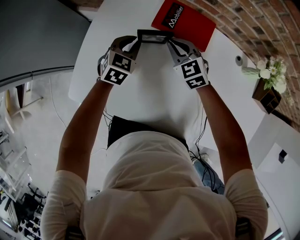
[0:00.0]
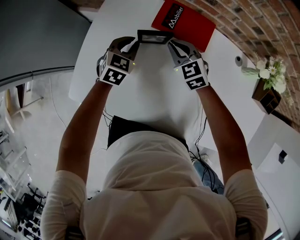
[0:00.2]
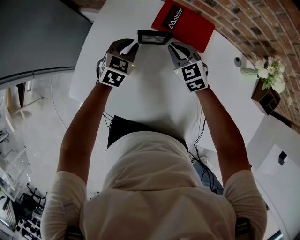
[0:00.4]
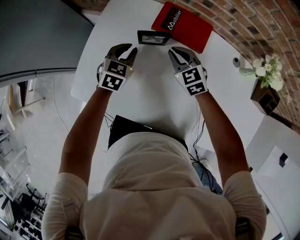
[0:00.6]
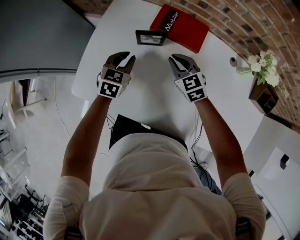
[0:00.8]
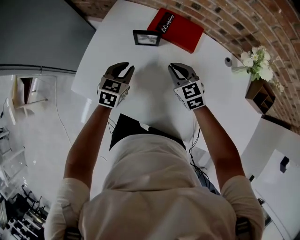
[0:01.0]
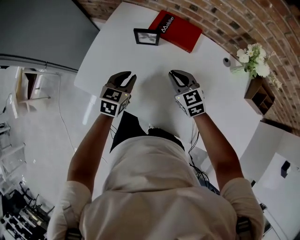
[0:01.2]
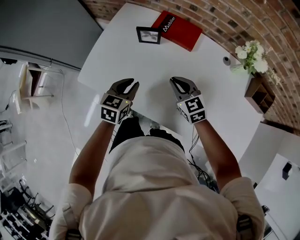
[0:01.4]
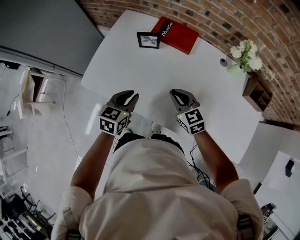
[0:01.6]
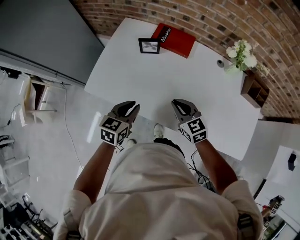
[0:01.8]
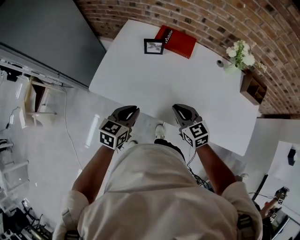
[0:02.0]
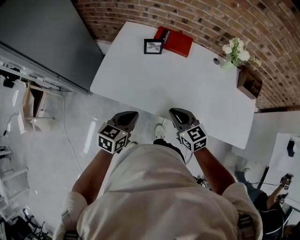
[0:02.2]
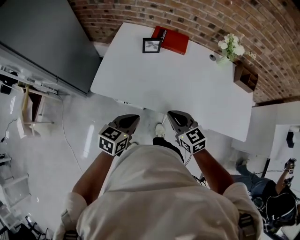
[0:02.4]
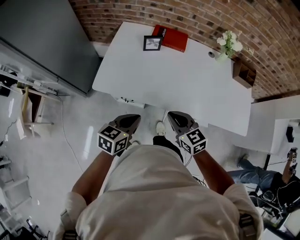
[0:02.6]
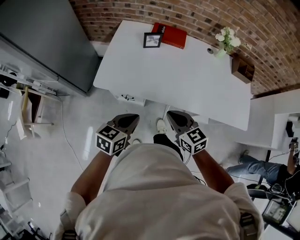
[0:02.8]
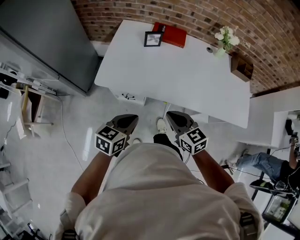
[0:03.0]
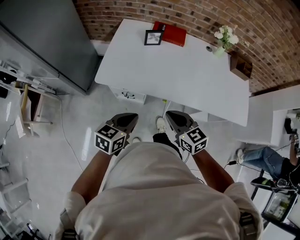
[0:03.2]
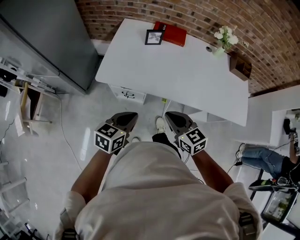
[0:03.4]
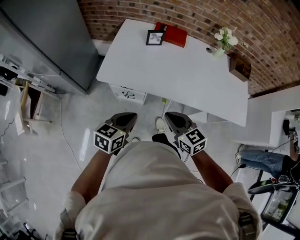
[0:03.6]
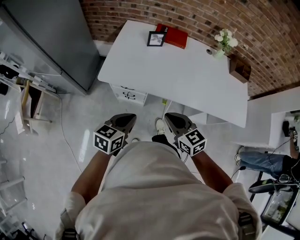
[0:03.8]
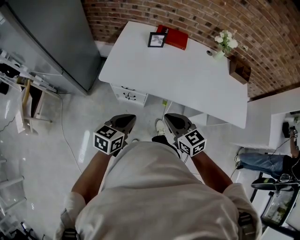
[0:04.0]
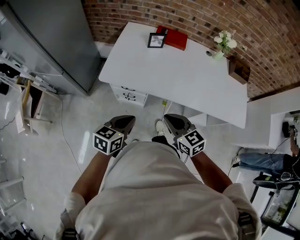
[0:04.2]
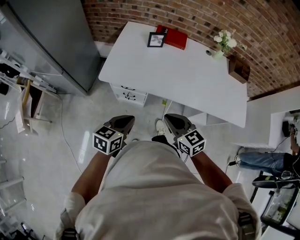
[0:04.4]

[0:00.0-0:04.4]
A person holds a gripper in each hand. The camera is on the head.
0:00.0 to 0:01.4: The grippers both shift backward by approximately 25 cm. The left gripper rotates about 20 degrees.
0:01.4 to 0:03.0: Both grippers travel together backward and to the left, some 30 cm. The left gripper turns by approximately 20 degrees.
0:03.0 to 0:04.4: The left gripper ends up roughly 5 cm from where it was, while the right gripper goes about 5 cm backward.

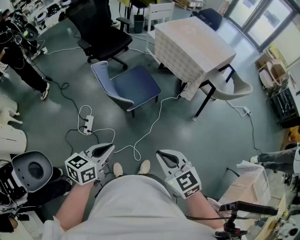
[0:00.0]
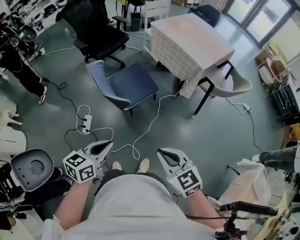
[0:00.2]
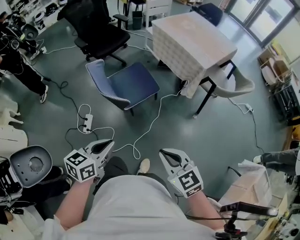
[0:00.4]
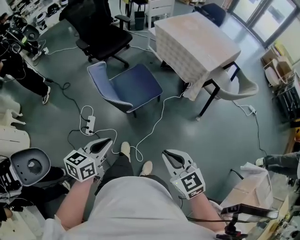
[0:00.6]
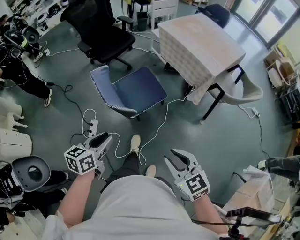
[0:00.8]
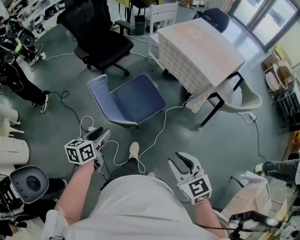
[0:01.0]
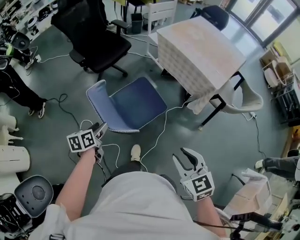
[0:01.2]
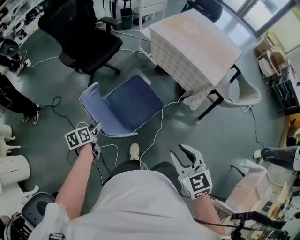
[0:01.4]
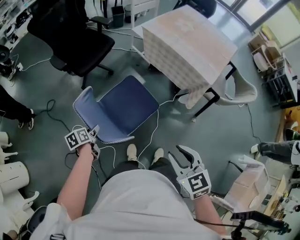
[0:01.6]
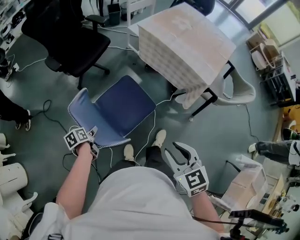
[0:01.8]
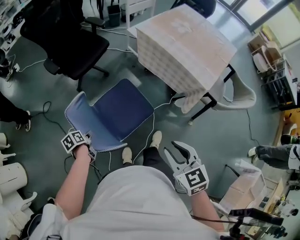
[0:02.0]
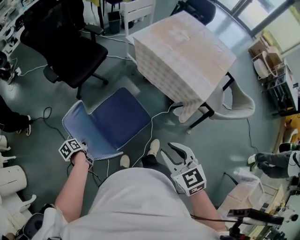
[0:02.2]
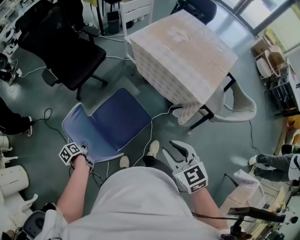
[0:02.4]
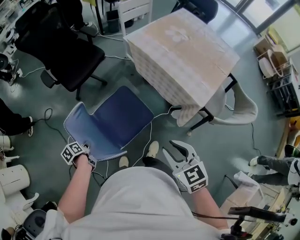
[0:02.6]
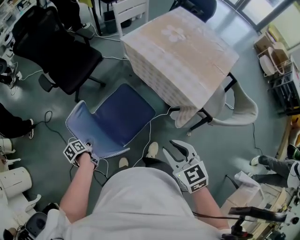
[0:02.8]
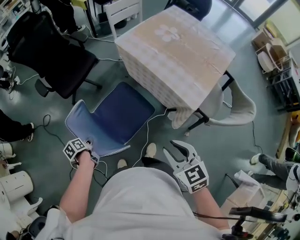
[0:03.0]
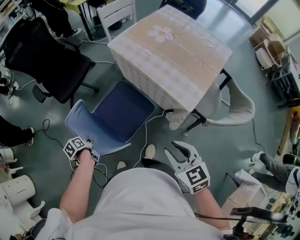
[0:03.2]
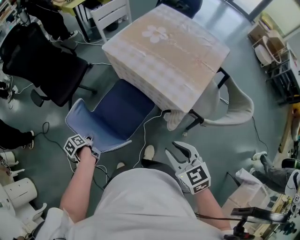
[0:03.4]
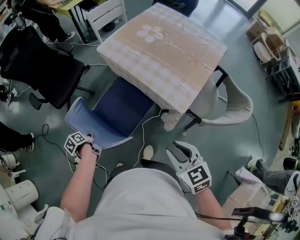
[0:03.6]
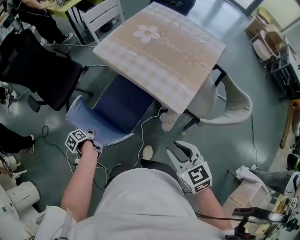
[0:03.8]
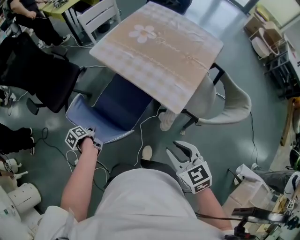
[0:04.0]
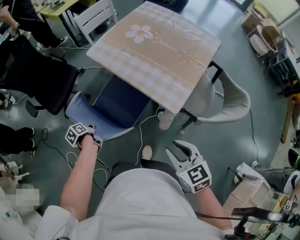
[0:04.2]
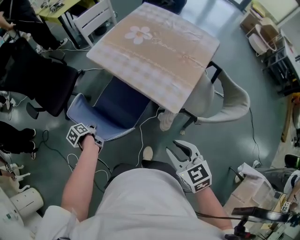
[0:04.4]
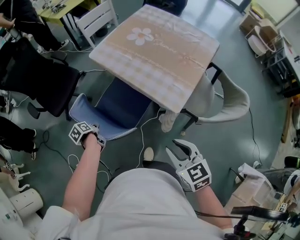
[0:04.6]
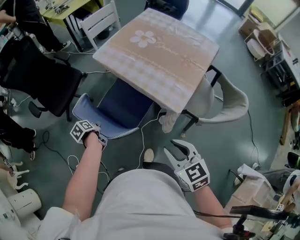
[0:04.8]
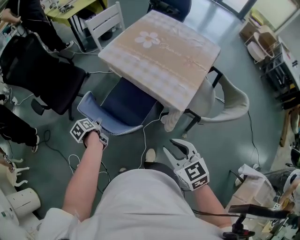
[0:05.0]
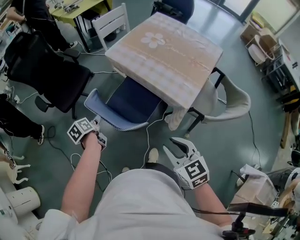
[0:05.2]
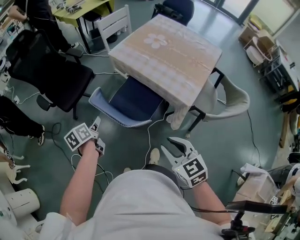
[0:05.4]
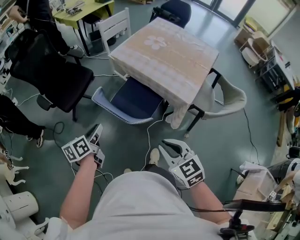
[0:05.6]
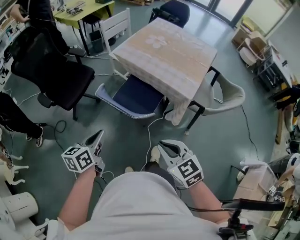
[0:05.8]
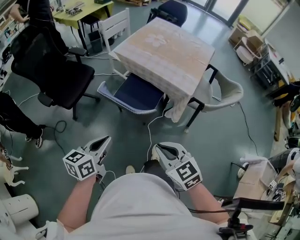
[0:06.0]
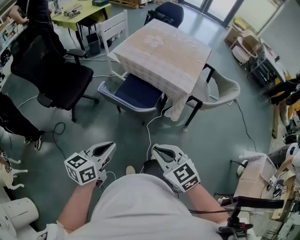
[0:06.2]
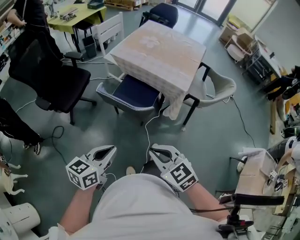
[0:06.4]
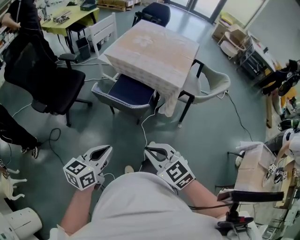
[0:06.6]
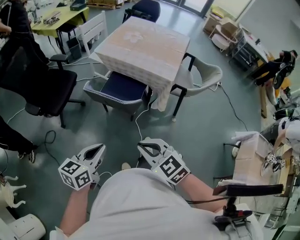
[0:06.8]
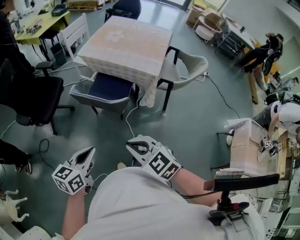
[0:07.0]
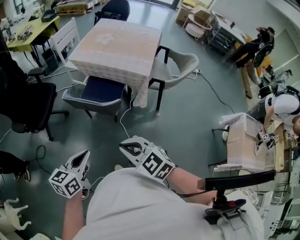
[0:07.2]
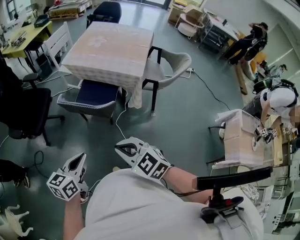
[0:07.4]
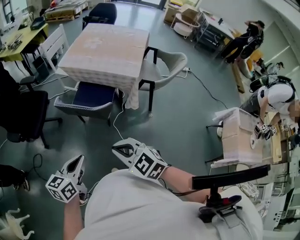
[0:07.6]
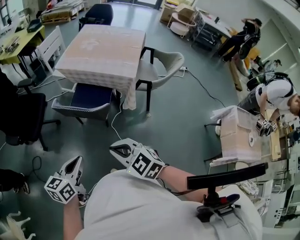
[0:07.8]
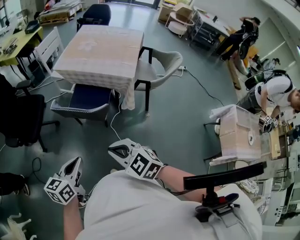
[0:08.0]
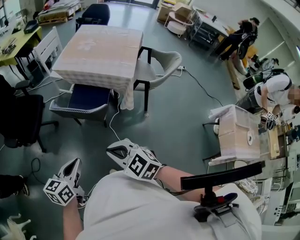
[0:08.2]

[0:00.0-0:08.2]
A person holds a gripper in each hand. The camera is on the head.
0:00.0 to 0:01.6: The right gripper moves forward, some 30 cm, changes its angle by about 20 degrees, and opens up. The left gripper goes roughly 50 cm forward, downward and to the left, swivels roughly 40 degrees, and opens.
0:01.6 to 0:03.2: Both grippers move to the right and forward, some 25 cm. The left gripper closes up.
0:03.2 to 0:05.0: The right gripper reaches approximately 10 cm to the right, then returns, while the left gripper moves to the right and forward, about 15 cm, and opens its fingers.
0:05.0 to 0:06.6: The left gripper travels backward and upward by roughly 35 cm, tips its fingers upward by about 30 degrees, and closes its fingers. Meanwhile the right gripper shifts about 30 cm to the left and backward, and closes up.
0:06.6 to 0:08.2: The grippers move only a little.

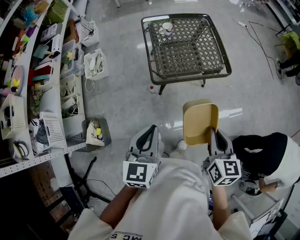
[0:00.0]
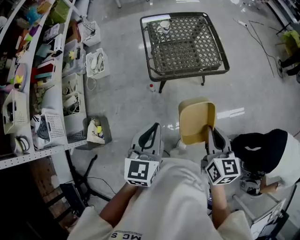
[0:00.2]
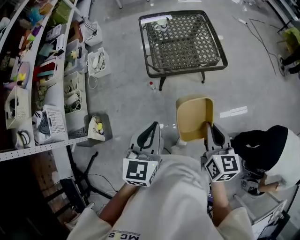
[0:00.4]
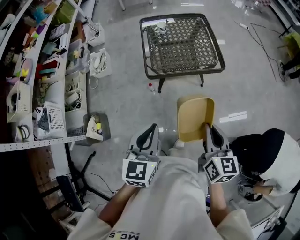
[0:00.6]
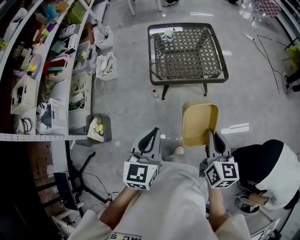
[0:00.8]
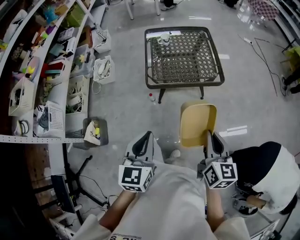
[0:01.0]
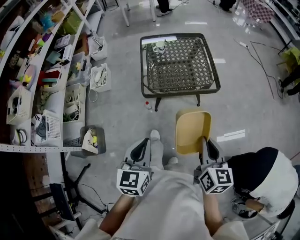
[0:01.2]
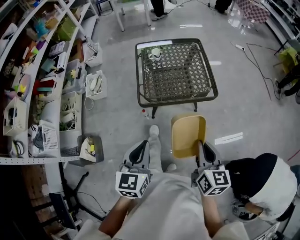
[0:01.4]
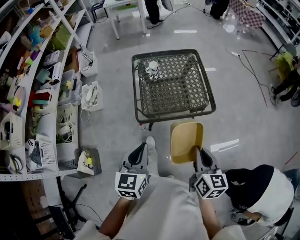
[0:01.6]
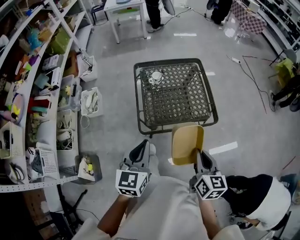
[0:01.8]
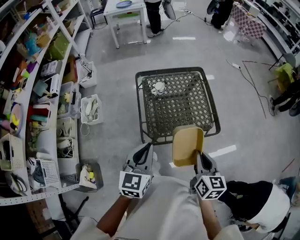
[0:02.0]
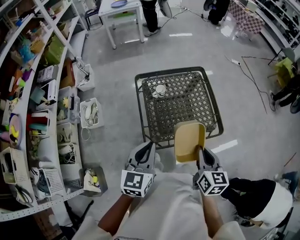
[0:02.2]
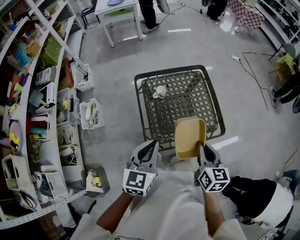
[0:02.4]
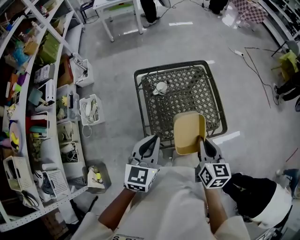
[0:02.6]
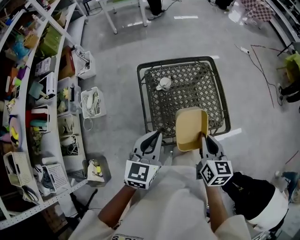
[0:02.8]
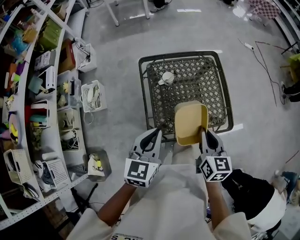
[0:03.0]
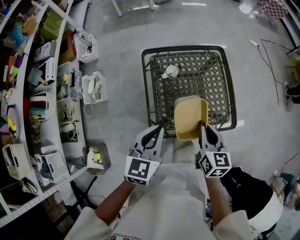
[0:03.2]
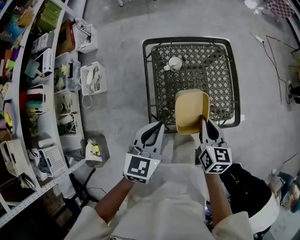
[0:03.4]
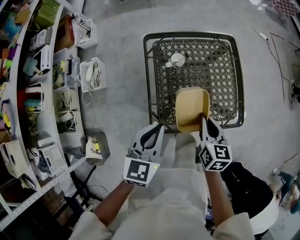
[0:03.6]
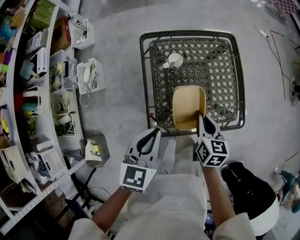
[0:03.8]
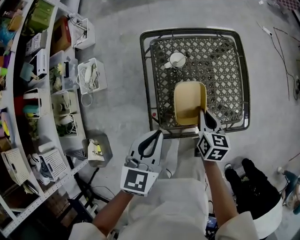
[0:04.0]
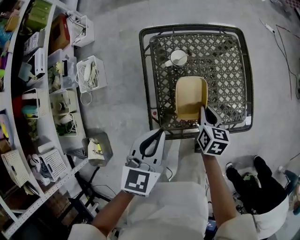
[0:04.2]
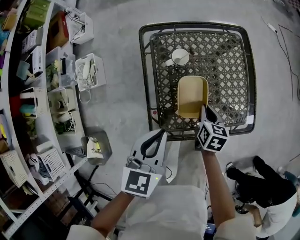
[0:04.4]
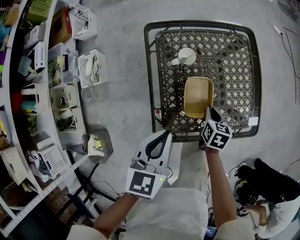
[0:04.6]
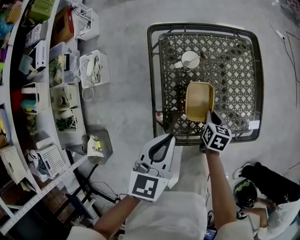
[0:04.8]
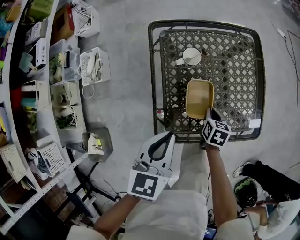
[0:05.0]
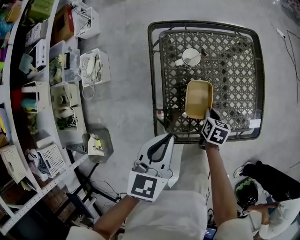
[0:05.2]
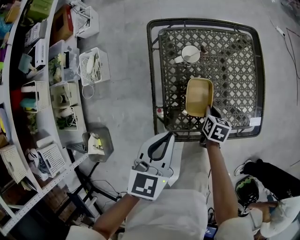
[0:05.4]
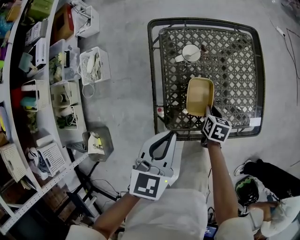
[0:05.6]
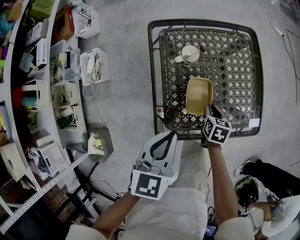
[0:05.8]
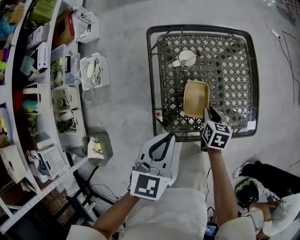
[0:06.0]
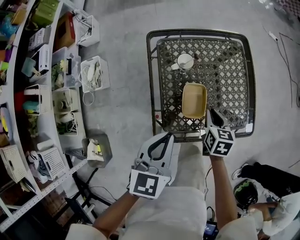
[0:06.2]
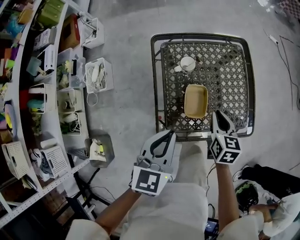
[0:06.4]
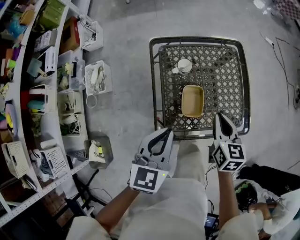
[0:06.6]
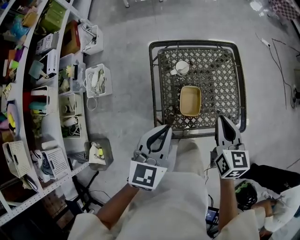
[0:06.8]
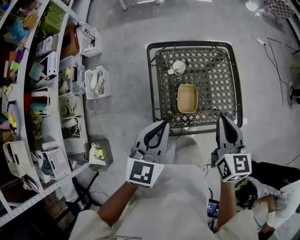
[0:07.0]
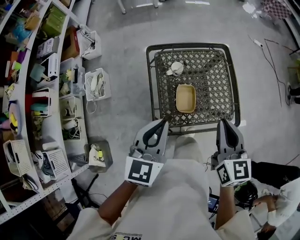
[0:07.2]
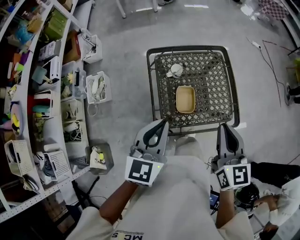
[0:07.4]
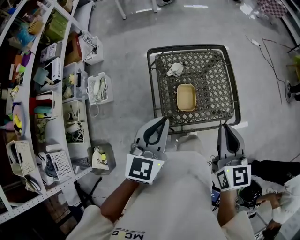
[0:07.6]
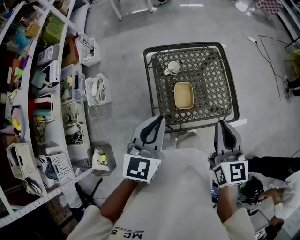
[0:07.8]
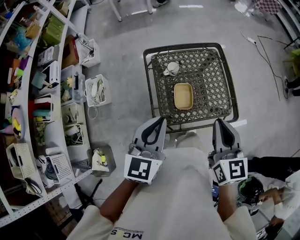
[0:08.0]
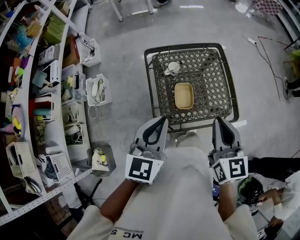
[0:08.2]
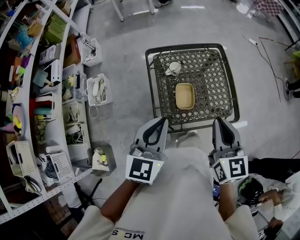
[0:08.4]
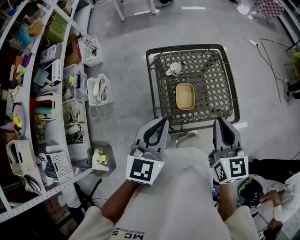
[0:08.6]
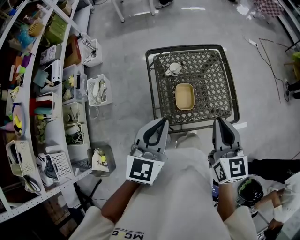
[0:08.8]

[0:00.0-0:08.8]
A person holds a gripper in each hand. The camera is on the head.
0:00.0 to 0:01.4: The two grippers go some 10 cm to the right.
0:01.4 to 0:03.0: Both grippers travel together forward, roughly 35 cm.
0:03.0 to 0:04.4: The left gripper shifts roughly 10 cm downward, while the right gripper moves downward, about 25 cm, and swivels about 20 degrees.
0:04.4 to 0:05.8: The right gripper goes roughly 5 cm downward.
0:05.8 to 0:07.4: The right gripper heads upward, covering approximately 40 cm, and angles its fingers upward, by roughly 40 degrees. The left gripper goes some 15 cm upward.
0:07.4 to 0:08.8: The grippers stay close to where they were, moving slightly.

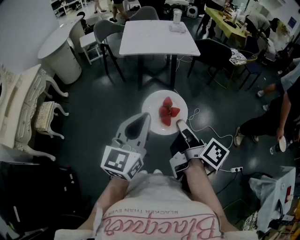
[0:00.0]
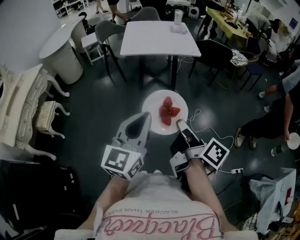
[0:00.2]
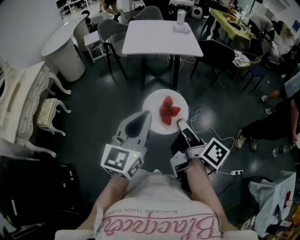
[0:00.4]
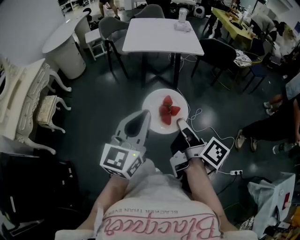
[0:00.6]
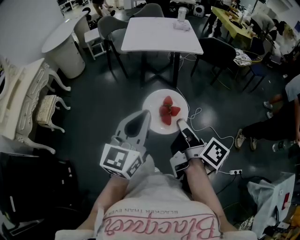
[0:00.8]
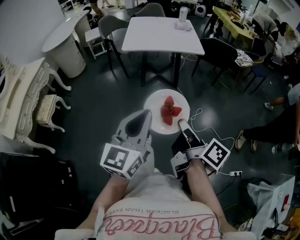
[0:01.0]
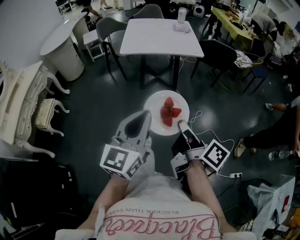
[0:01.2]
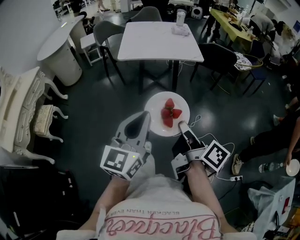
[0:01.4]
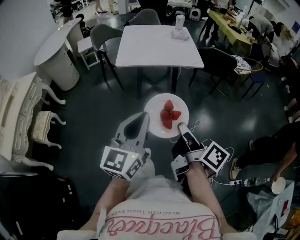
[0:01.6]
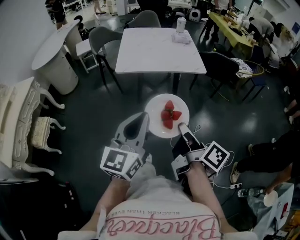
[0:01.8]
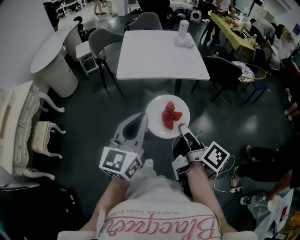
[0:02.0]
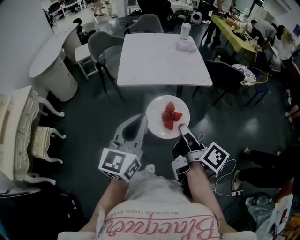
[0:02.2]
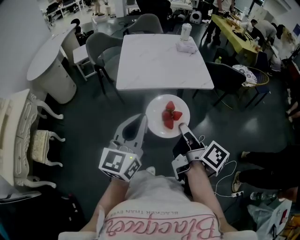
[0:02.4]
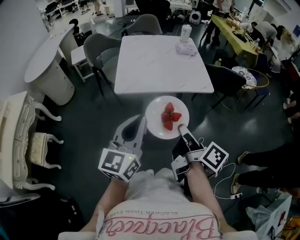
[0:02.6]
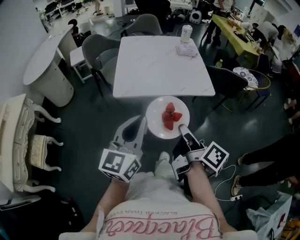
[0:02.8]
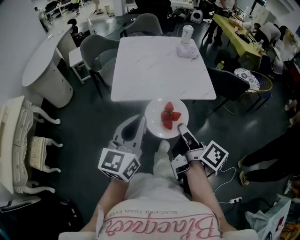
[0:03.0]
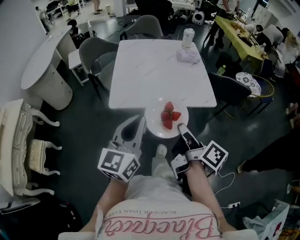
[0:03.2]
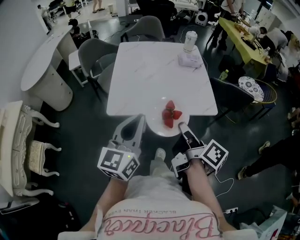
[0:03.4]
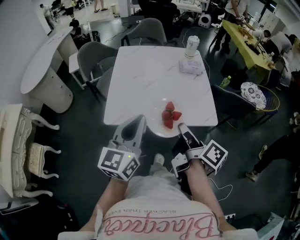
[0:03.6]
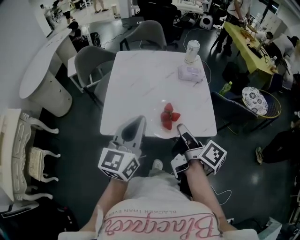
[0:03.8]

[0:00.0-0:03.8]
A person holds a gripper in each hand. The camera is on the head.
0:00.0 to 0:01.2: The right gripper moves approximately 5 cm. Meanwhile the left gripper changes place by roughly 5 cm.
0:01.2 to 0:02.6: The two grippers go approximately 35 cm forward.
0:02.6 to 0:03.8: Both grippers move forward, some 30 cm.
